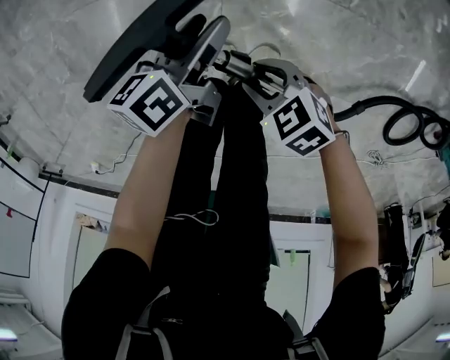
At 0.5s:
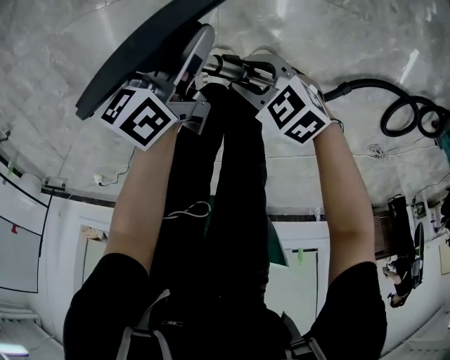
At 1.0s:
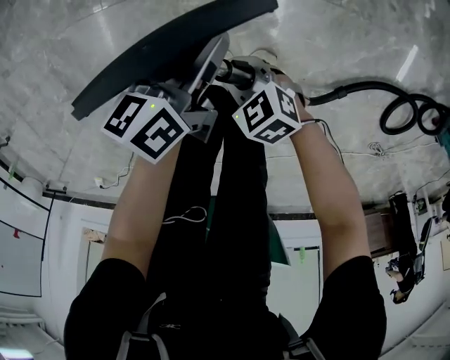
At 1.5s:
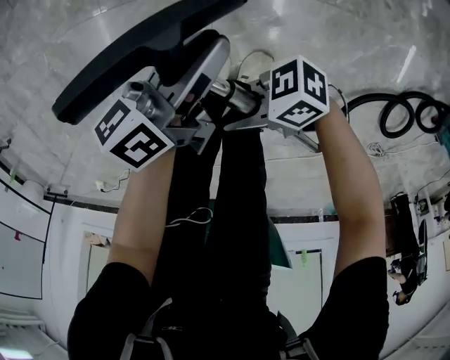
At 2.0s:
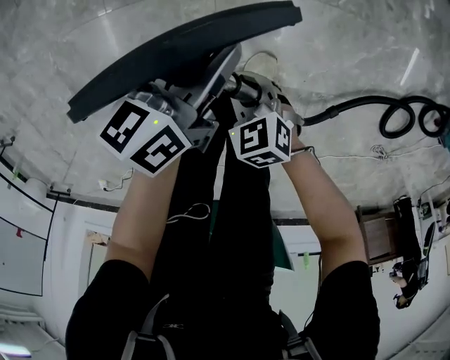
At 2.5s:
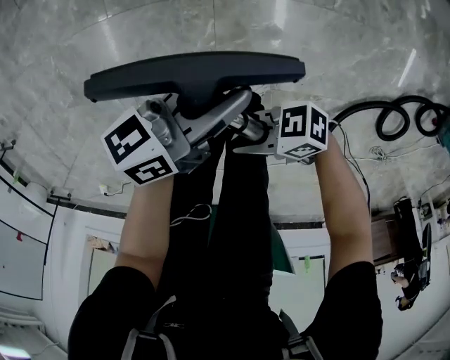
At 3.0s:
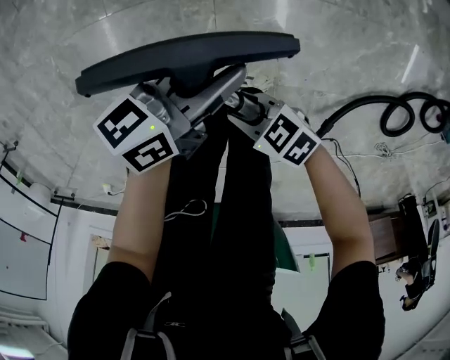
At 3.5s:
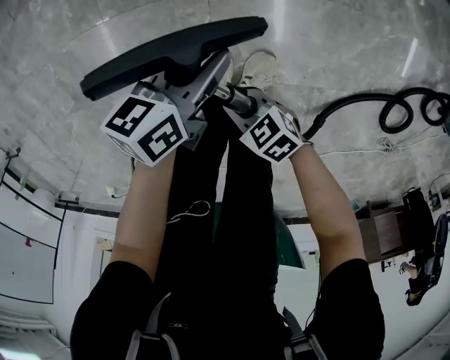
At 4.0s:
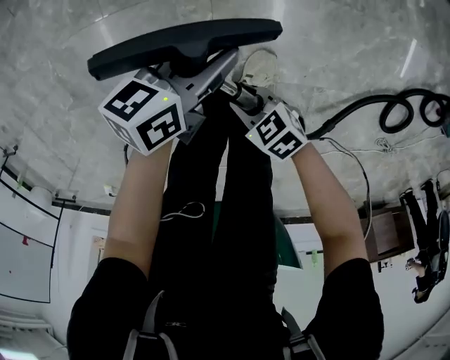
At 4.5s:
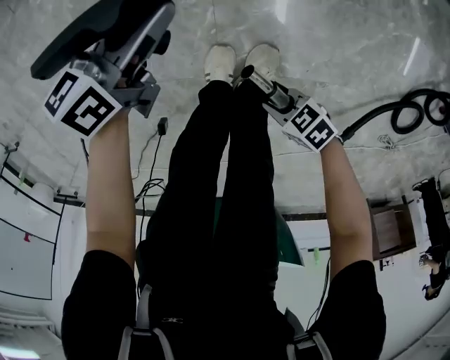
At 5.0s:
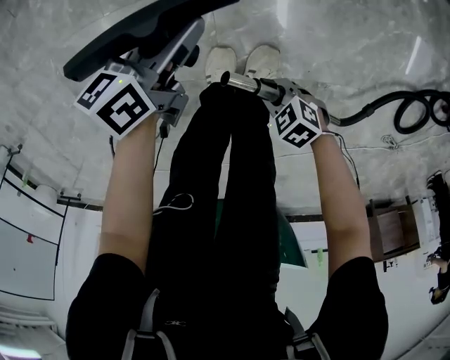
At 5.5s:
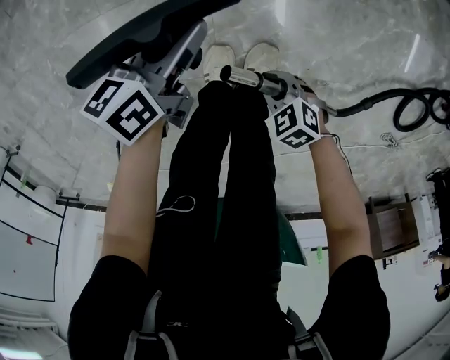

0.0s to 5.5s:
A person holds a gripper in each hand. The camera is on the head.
0.0s to 2.0s: The left gripper goes roughly 5 cm upward, changes its angle by roughly 20 degrees, and closes its fingers, while the right gripper goes upward and returns, approximately 5 cm each way, turns by approximately 20 degrees, and closes its fingers.
2.0s to 3.5s: The right gripper goes upward and returns, about 10 cm each way, and turns by some 20 degrees.
3.5s to 5.5s: The right gripper changes place by roughly 10 cm, and rotates some 20 degrees.

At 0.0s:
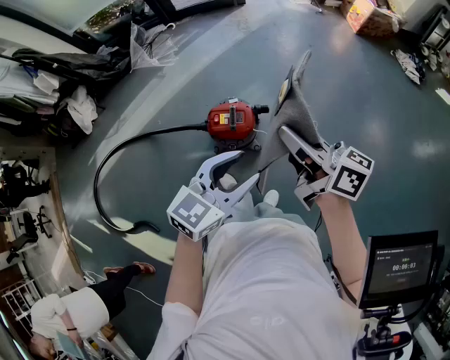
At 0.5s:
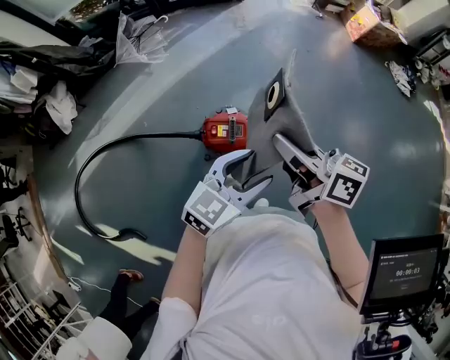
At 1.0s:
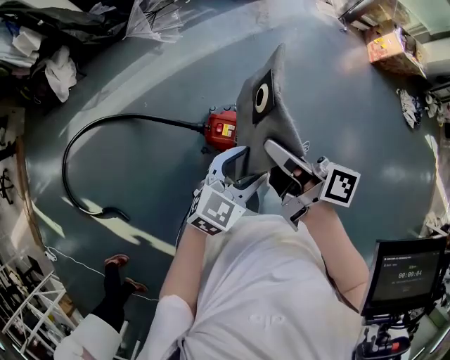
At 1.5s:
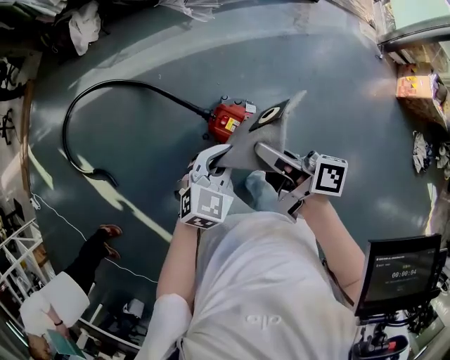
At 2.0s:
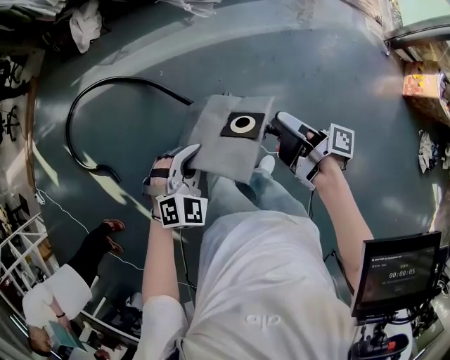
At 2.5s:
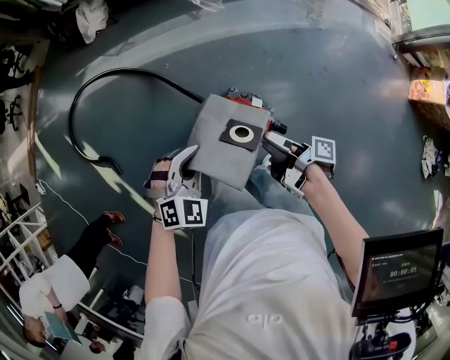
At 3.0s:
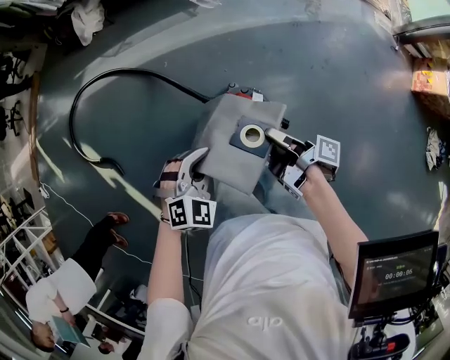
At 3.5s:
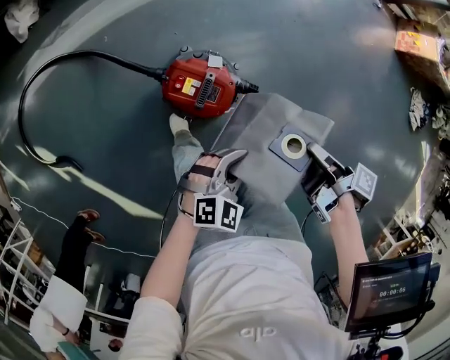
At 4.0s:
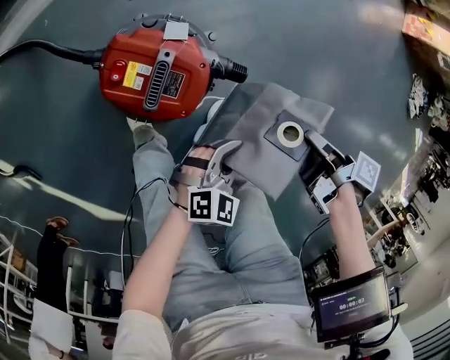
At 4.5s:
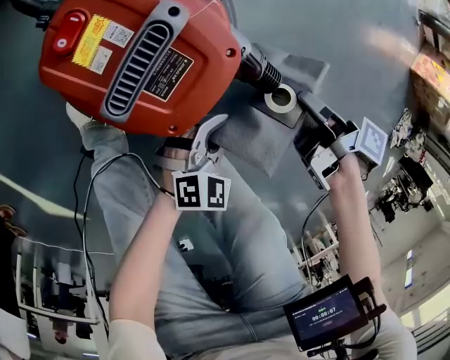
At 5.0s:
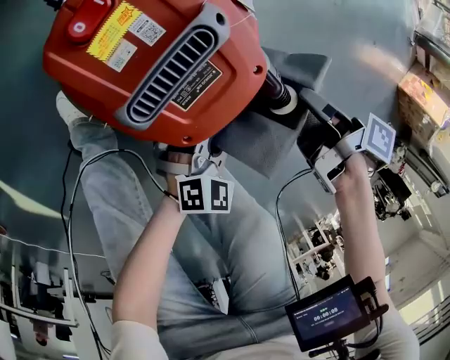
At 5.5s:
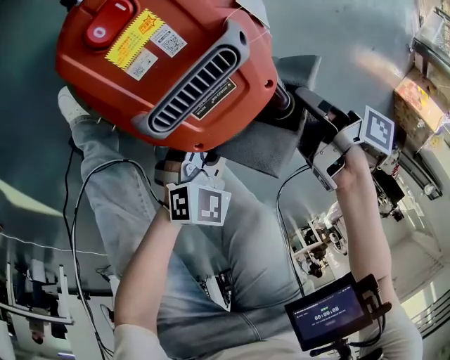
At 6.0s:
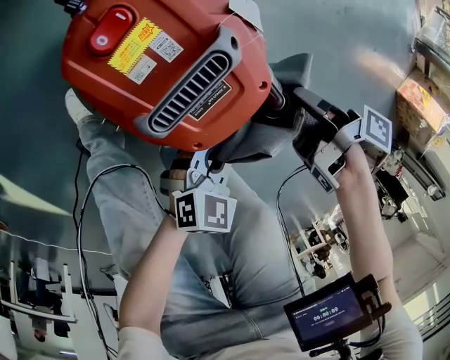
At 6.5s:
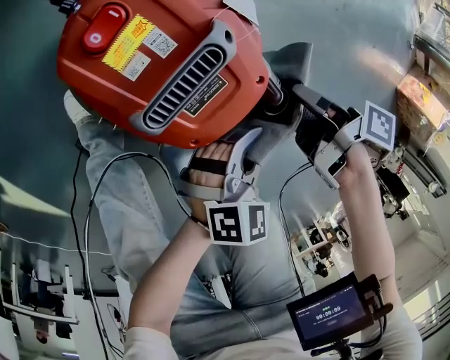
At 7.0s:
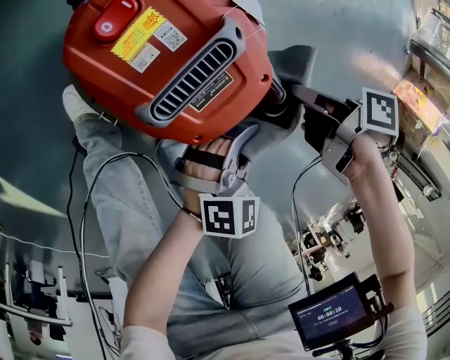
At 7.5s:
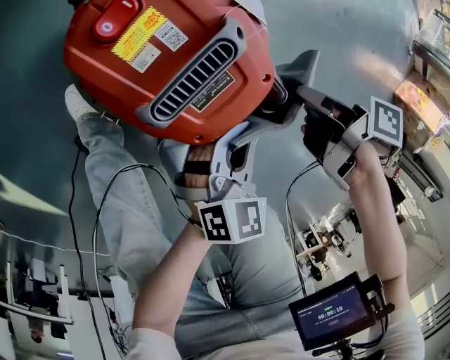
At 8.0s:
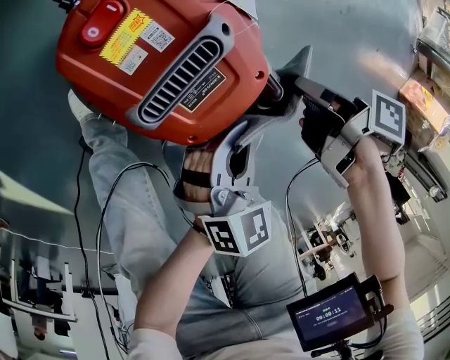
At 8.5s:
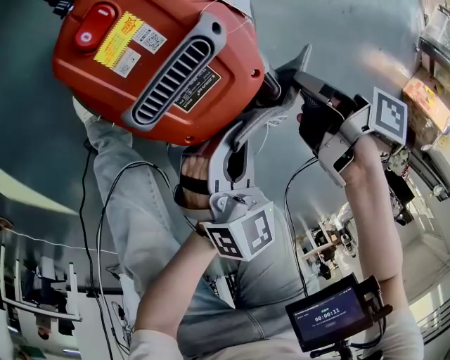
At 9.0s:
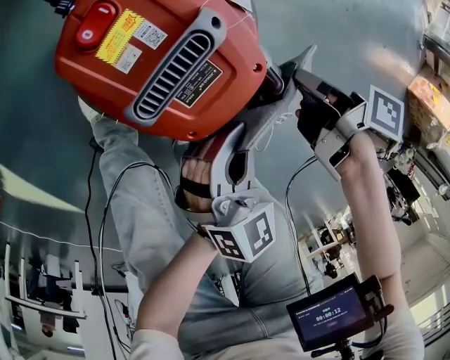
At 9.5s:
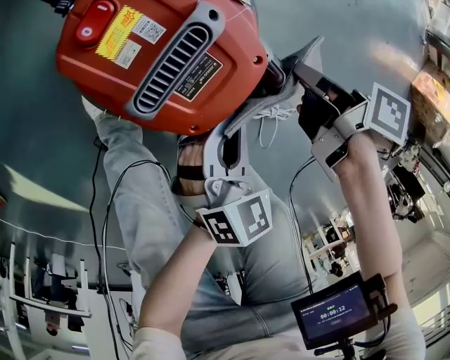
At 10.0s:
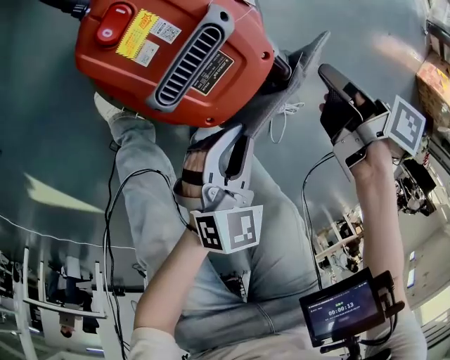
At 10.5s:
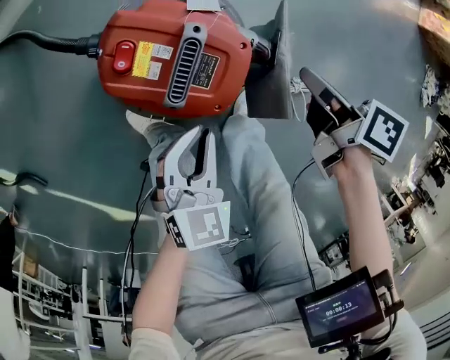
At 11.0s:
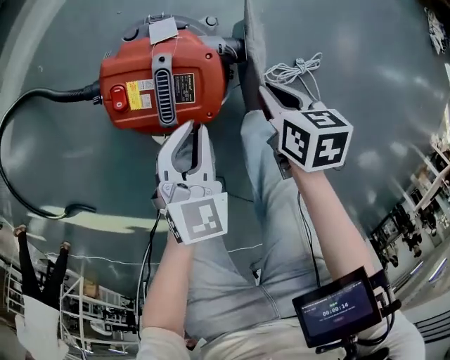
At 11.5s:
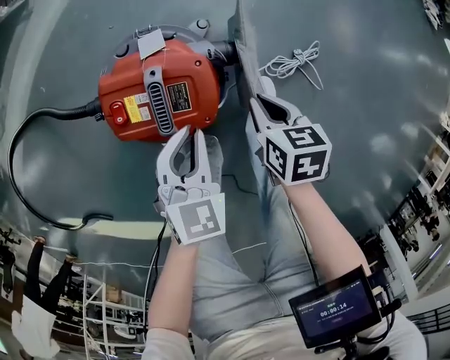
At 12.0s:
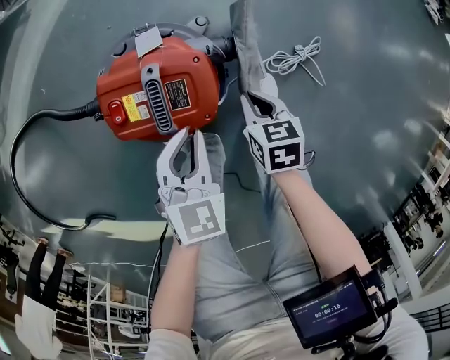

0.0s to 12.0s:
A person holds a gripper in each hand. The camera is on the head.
0.0s to 2.0s: The left gripper changes place by about 30 cm, rotates roughly 60 degrees, and closes up.
2.0s to 4.0s: The left gripper moves downward, approximately 40 cm, and rotates approximately 40 degrees.
4.0s to 6.0s: The left gripper goes roughly 15 cm downward, and swivels approximately 40 degrees.
6.0s to 8.0s: The left gripper shifts by approximately 10 cm, and turns by approximately 20 degrees.
10.0s to 12.0s: The left gripper moves about 10 cm, and turns by roughly 20 degrees.

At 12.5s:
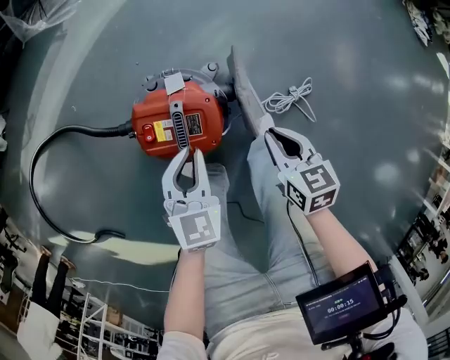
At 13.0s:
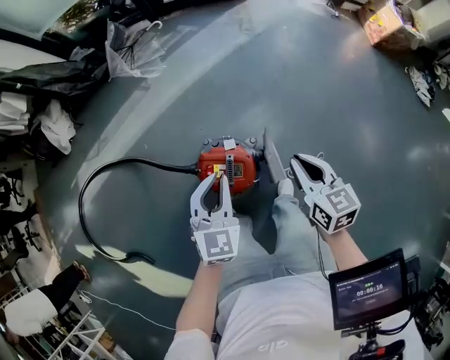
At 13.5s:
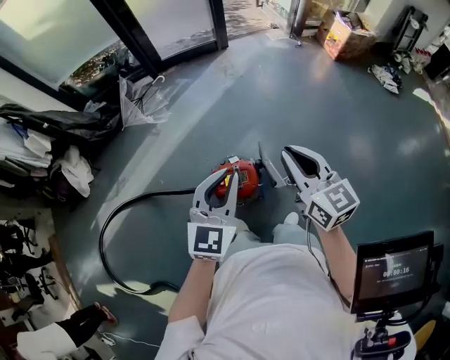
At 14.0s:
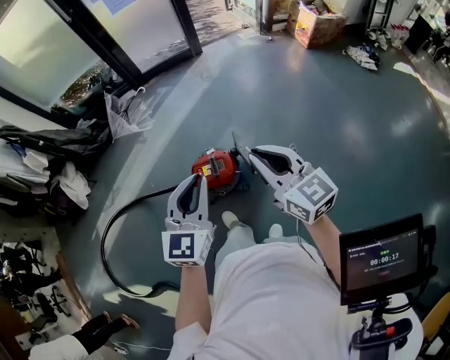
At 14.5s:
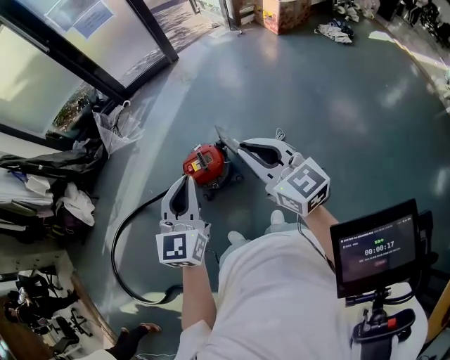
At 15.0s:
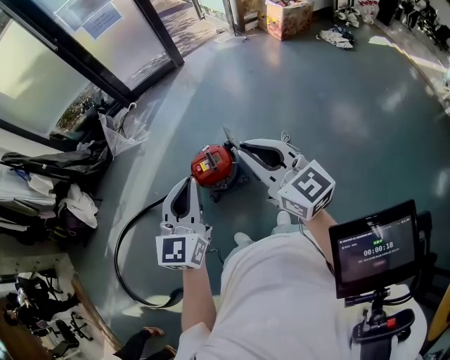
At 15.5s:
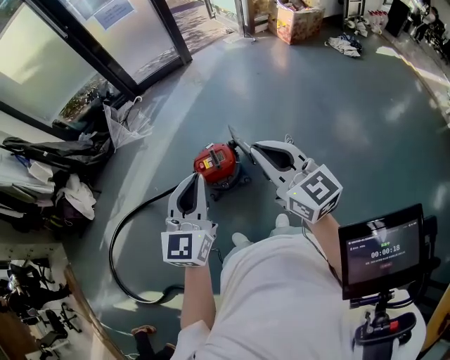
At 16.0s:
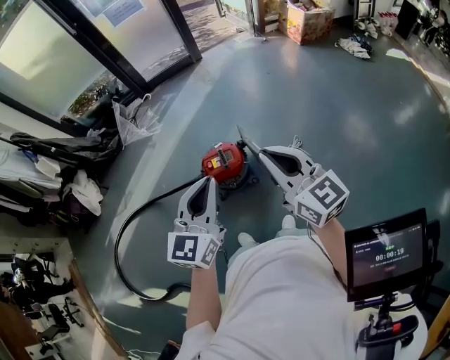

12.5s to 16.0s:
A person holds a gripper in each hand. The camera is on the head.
12.5s to 14.5s: The left gripper shifts approximately 60 cm upward, and points its fingers roughly 30 degrees further upward.
14.5s to 16.0s: The left gripper ends up approximately 5 cm from where it was.

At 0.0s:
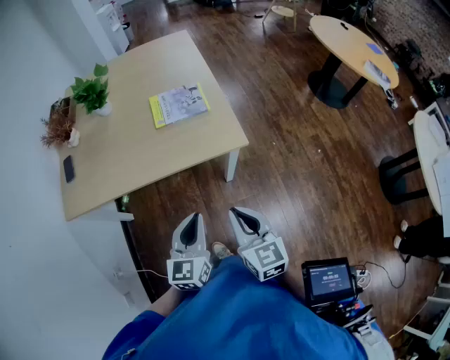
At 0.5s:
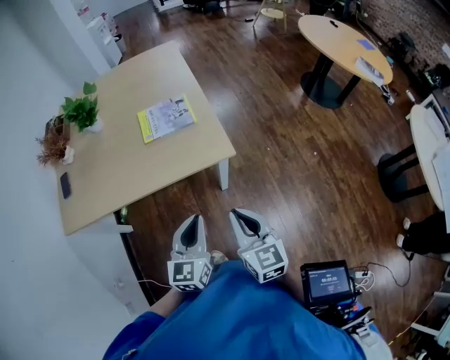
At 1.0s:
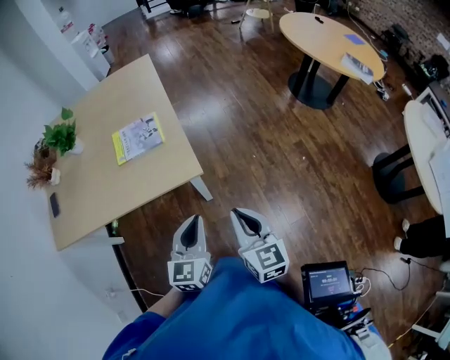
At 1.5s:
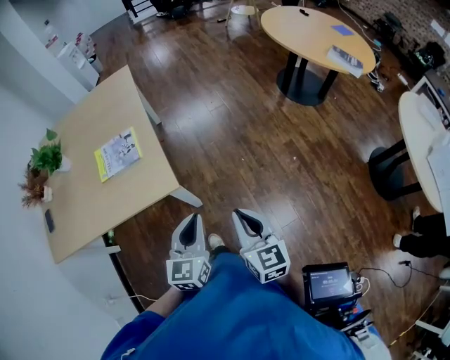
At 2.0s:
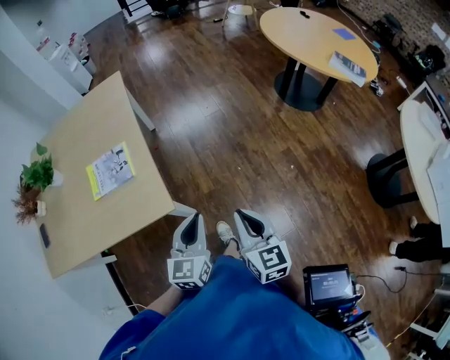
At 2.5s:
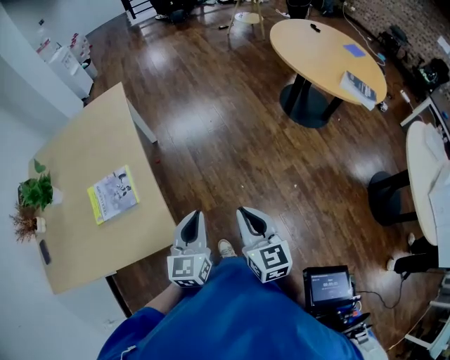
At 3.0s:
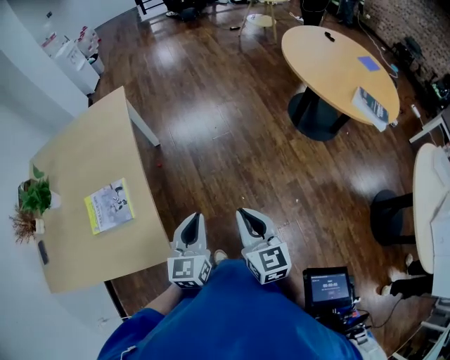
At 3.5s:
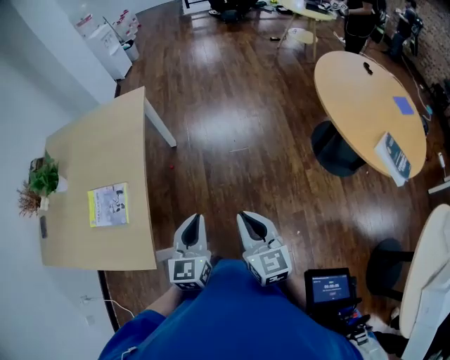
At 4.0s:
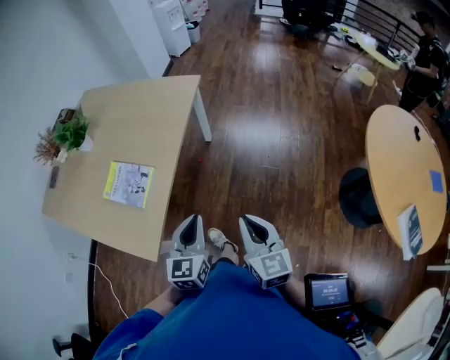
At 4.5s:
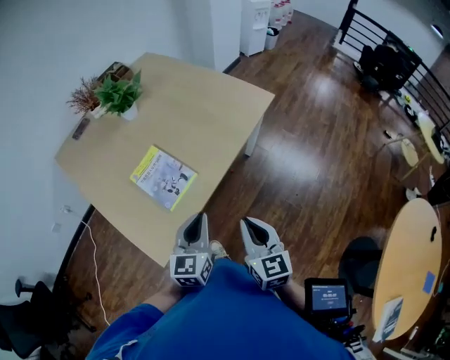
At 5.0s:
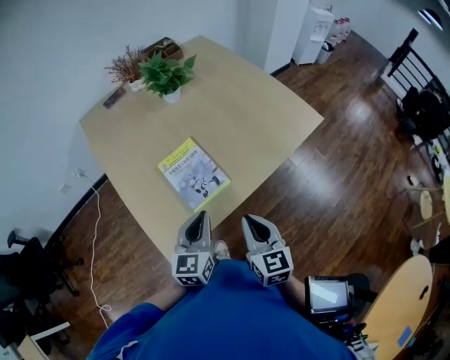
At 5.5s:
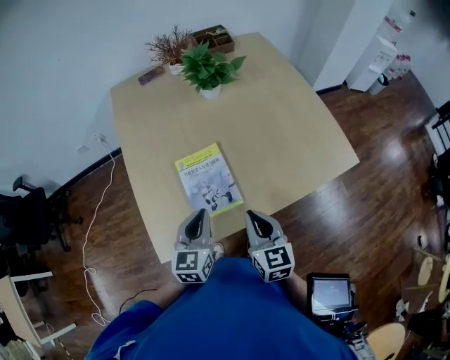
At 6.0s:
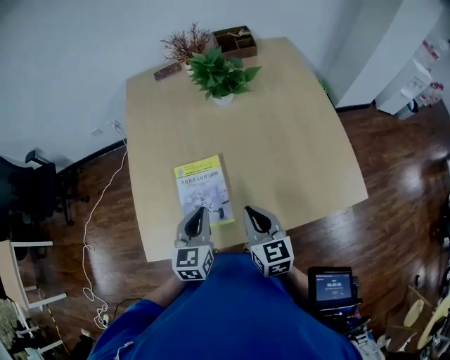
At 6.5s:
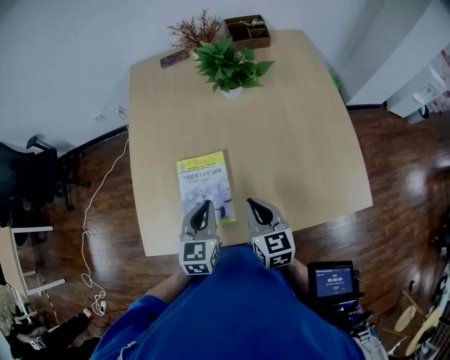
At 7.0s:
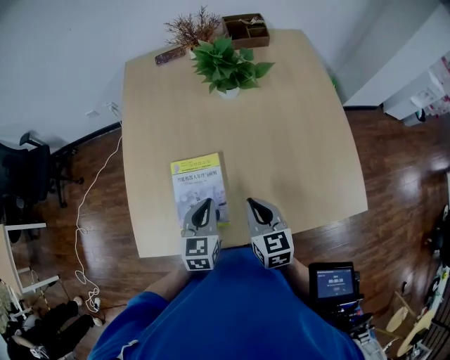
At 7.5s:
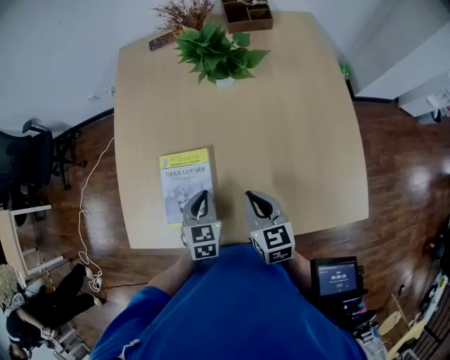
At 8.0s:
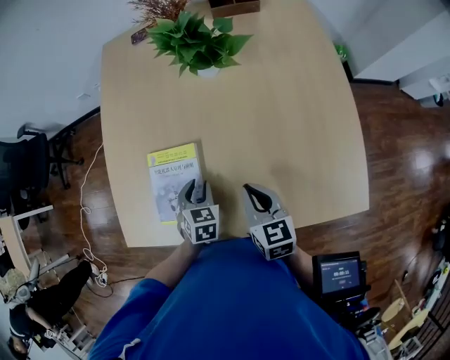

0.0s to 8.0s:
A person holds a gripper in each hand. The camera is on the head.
0.0s to 2.0s: The pair of grippers is taken to the right and forward, approximately 40 cm.
2.0s to 4.0s: The right gripper moves about 40 cm, and changes its angle by some 40 degrees; the left gripper changes place by some 35 cm, and changes its angle by some 40 degrees.
4.0s to 6.0s: The left gripper changes place by roughly 40 cm, and swivels about 60 degrees, while the right gripper moves roughly 50 cm, and turns by about 70 degrees.
6.0s to 8.0s: The right gripper heads to the right, forward and downward, covering roughly 15 cm. Meanwhile the left gripper goes some 20 cm downward, to the right and forward, rotates approximately 40 degrees, and opens up.
